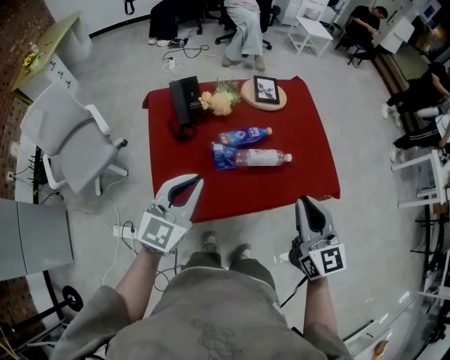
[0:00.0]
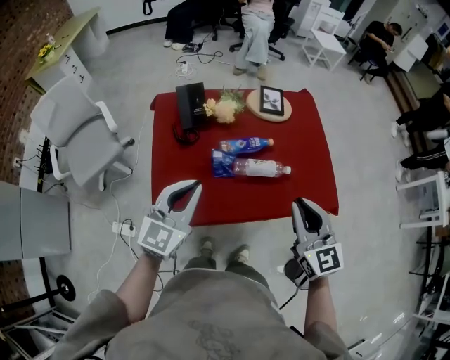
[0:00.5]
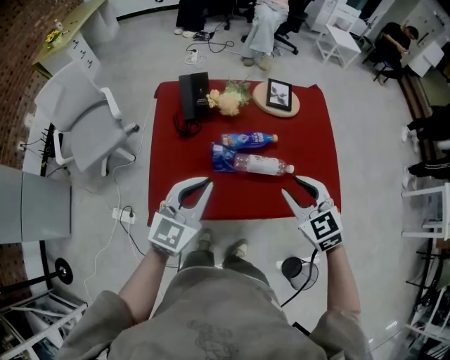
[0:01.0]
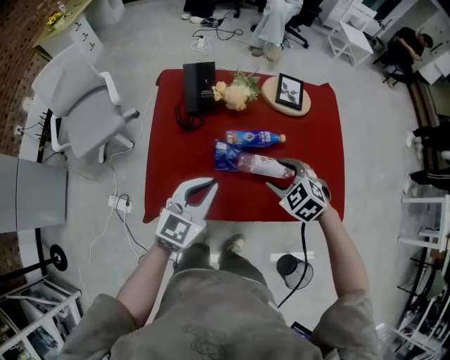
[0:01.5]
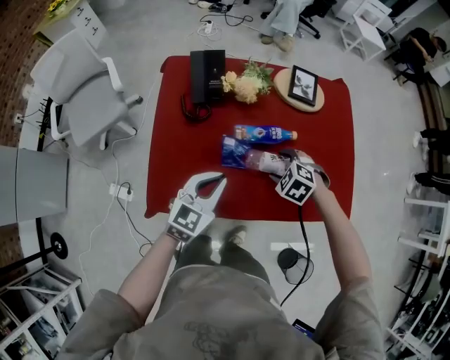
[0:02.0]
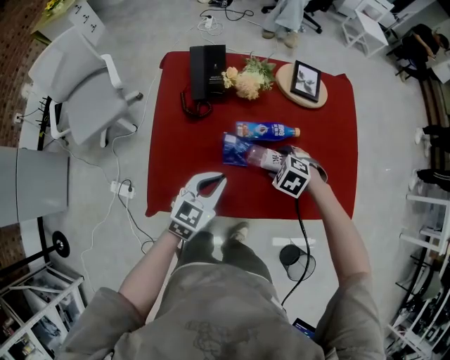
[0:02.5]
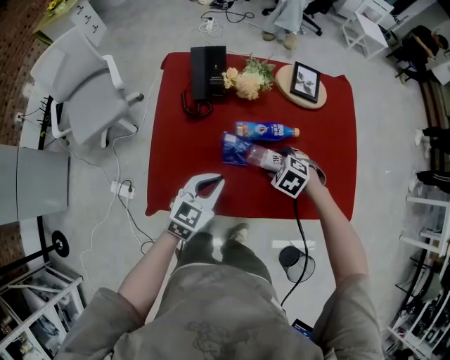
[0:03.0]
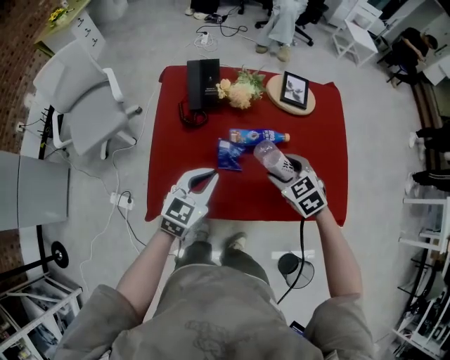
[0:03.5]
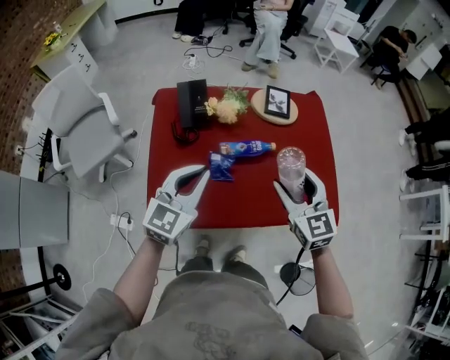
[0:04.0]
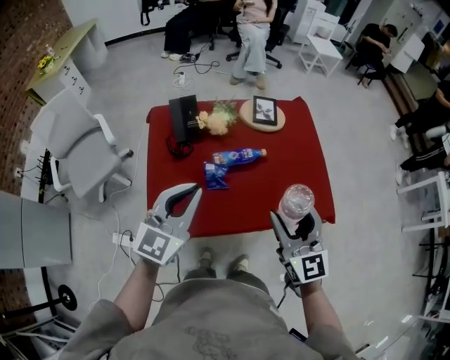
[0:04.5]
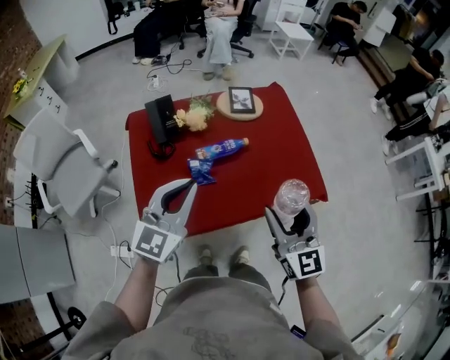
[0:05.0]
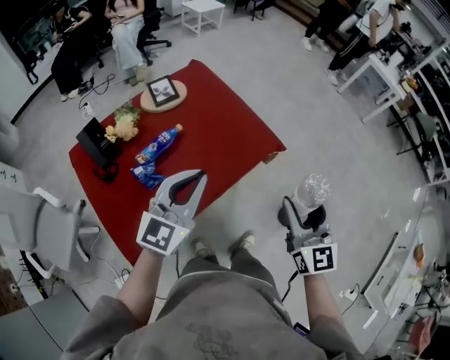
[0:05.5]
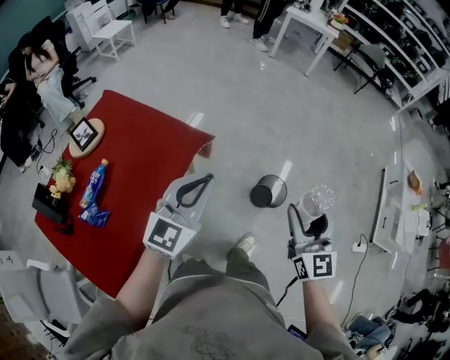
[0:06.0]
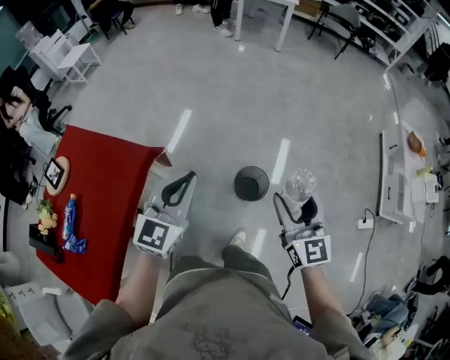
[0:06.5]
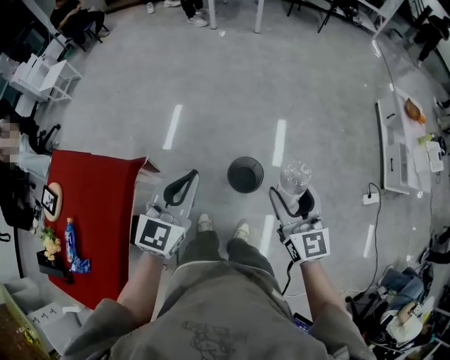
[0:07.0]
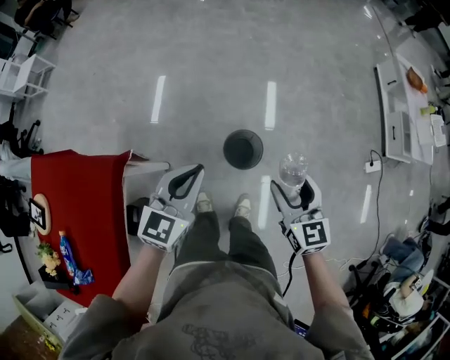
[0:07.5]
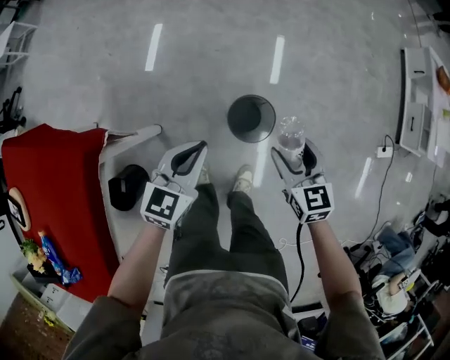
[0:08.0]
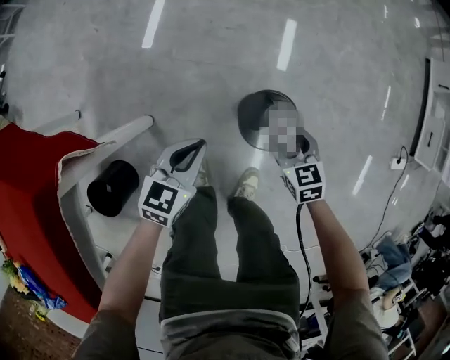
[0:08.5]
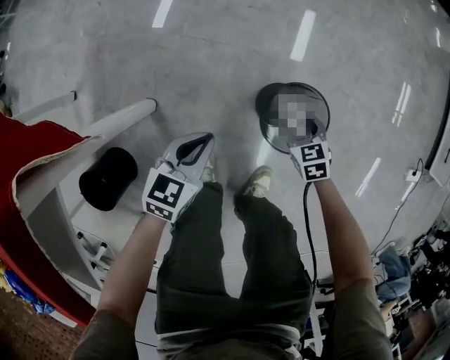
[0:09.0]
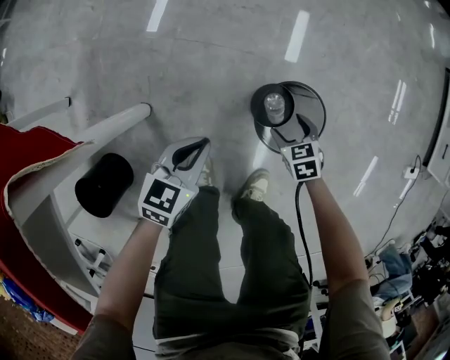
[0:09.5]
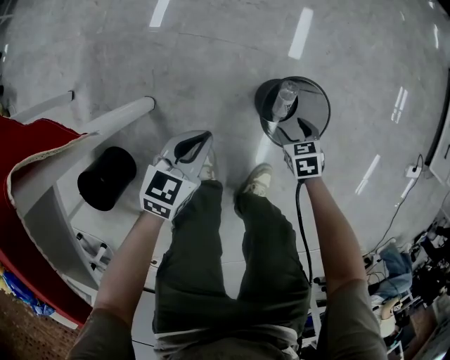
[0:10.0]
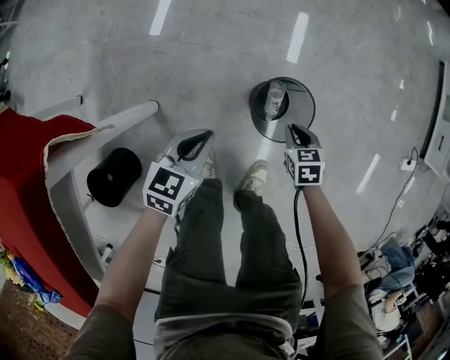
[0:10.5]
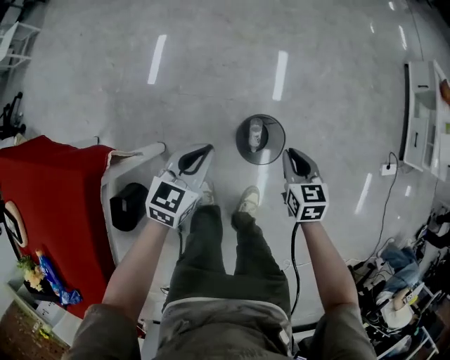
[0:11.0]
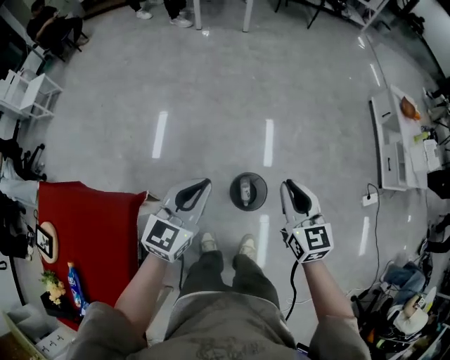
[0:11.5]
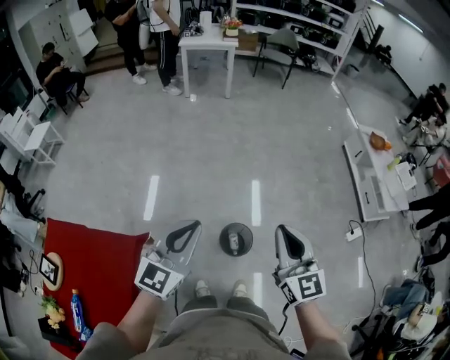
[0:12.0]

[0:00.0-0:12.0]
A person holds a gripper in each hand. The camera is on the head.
0:00.0 to 0:02.0: The right gripper shifts about 35 cm downward and forward, points its fingers some 60 degrees further downward, and opens up. The left gripper goes about 15 cm downward.
0:02.0 to 0:04.0: The right gripper goes roughly 25 cm upward, and tilts its fingers some 50 degrees upward. Meanwhile the left gripper moves upward, about 15 cm.
0:04.0 to 0:06.0: The pair of grippers is taken roughly 50 cm. The left gripper turns by about 60 degrees; the right gripper turns by roughly 80 degrees.
0:06.0 to 0:08.0: The two grippers go about 50 cm downward, forward and to the right. The right gripper tilts its fingers roughly 30 degrees downward; the left gripper swivels roughly 40 degrees.
0:08.0 to 0:10.0: Both grippers travel together downward, roughly 40 cm. The right gripper angles its fingers downward, by some 30 degrees.
0:10.0 to 0:12.0: Both grippers travel together upward, approximately 80 cm. The left gripper tips its fingers upward by approximately 40 degrees. The right gripper points its fingers approximately 70 degrees further upward, and closes its fingers.

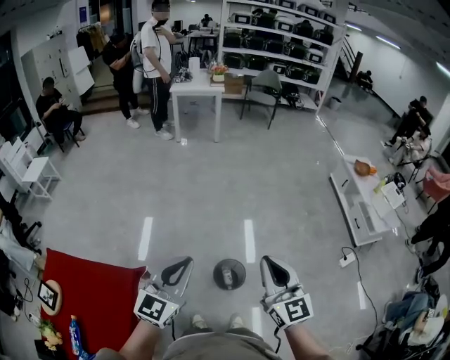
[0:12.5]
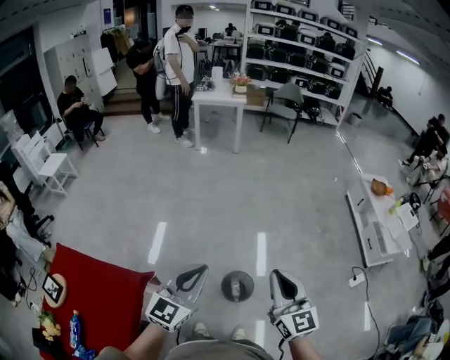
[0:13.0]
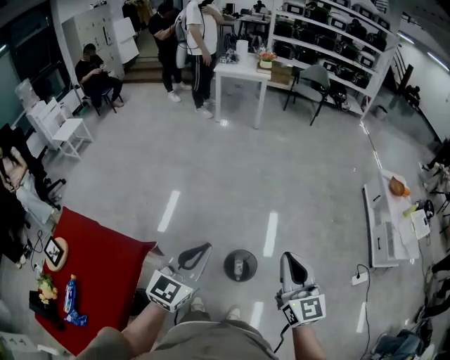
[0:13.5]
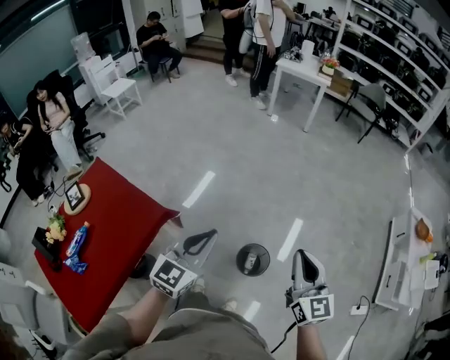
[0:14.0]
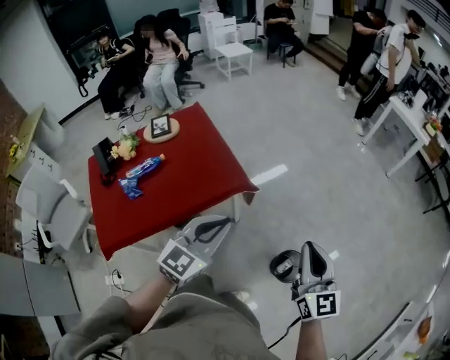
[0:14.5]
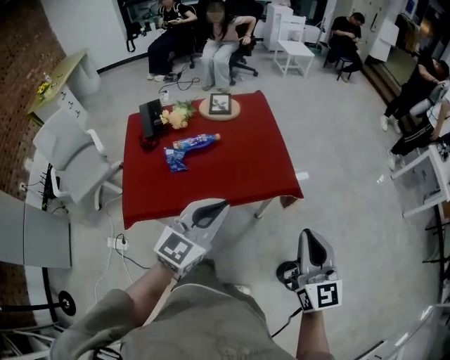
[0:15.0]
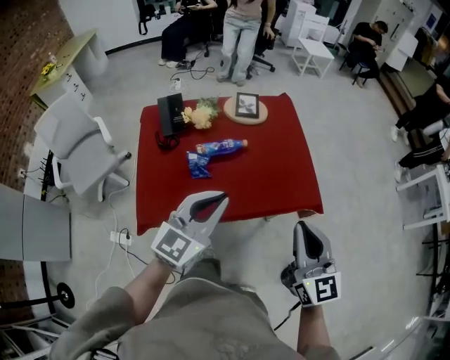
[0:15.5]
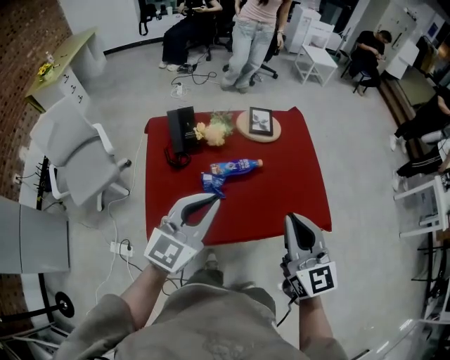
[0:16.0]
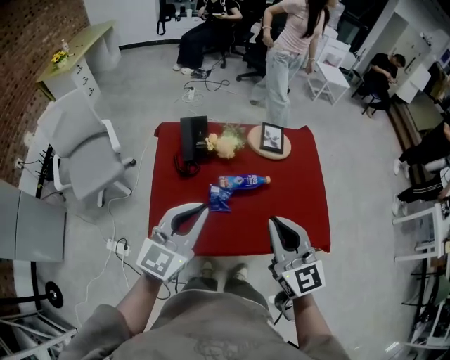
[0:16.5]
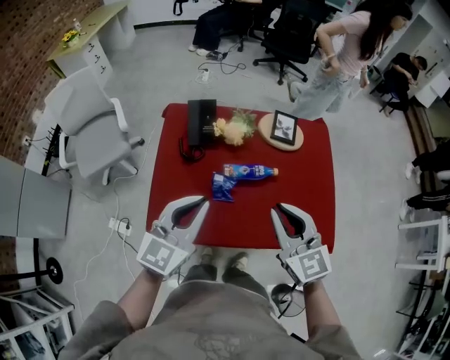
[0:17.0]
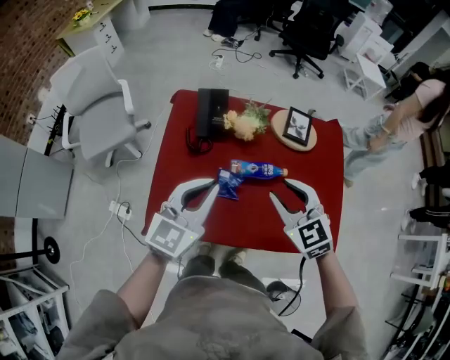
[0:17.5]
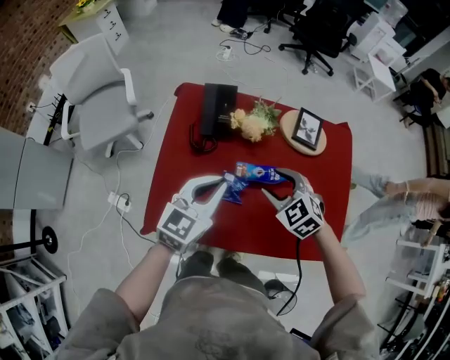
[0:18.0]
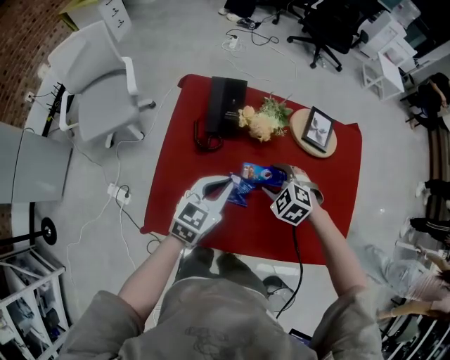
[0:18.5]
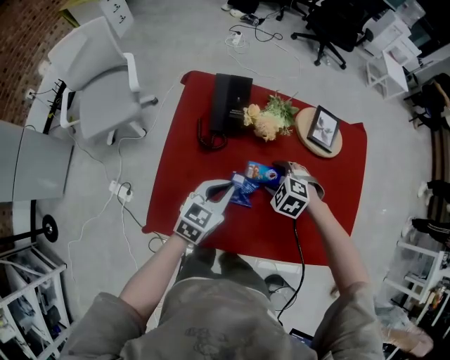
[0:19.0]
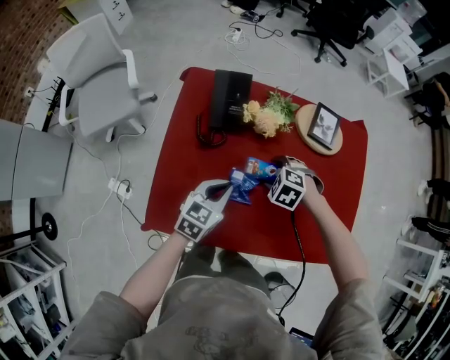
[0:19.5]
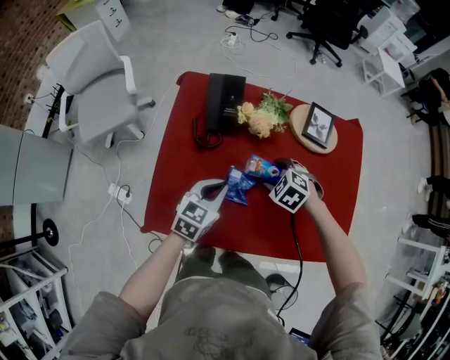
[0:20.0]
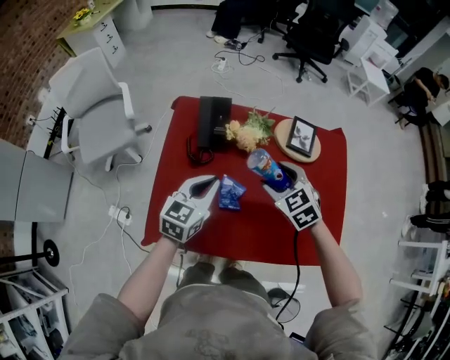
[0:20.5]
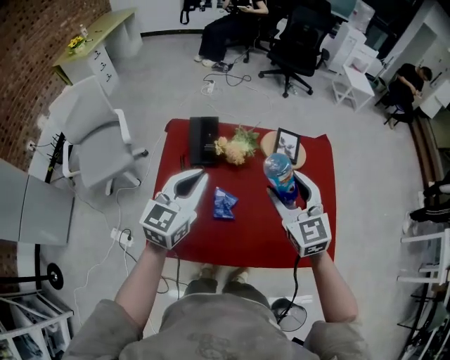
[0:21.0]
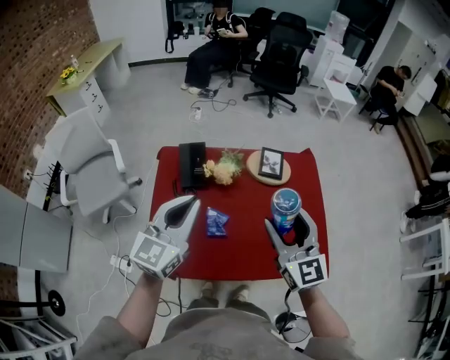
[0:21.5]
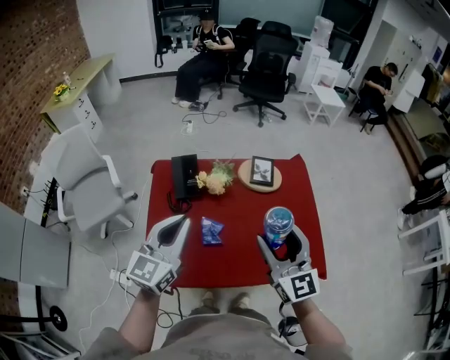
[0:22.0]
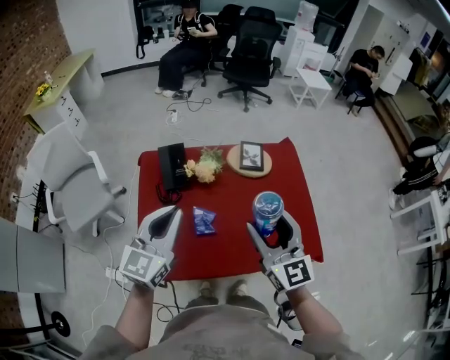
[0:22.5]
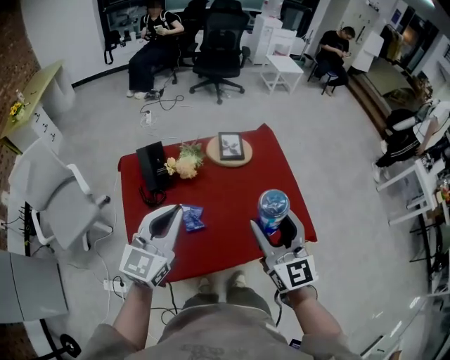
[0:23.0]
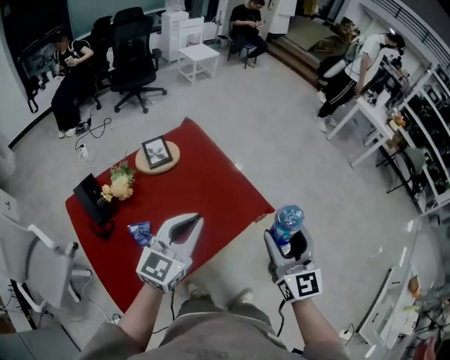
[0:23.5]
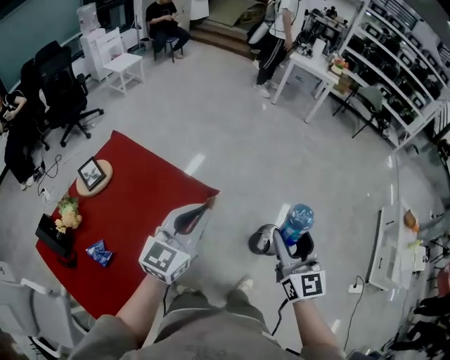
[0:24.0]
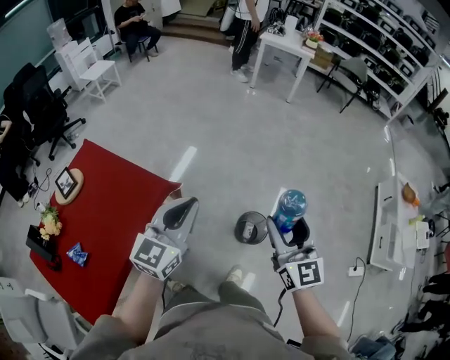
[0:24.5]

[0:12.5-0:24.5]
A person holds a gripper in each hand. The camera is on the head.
0:12.5 to 0:14.5: The left gripper changes place by roughly 15 cm, and changes its angle by approximately 50 degrees; the right gripper moves about 15 cm, and swivels approximately 50 degrees.
0:14.5 to 0:16.5: The two grippers travel together, roughly 60 cm. The left gripper changes its angle by approximately 40 degrees. Meanwhile the right gripper changes its angle by some 40 degrees.
0:16.5 to 0:18.5: Both grippers travel together downward and forward, some 30 cm. The right gripper angles its fingers downward, by approximately 60 degrees, and opens its fingers. The left gripper turns by approximately 30 degrees.
0:18.5 to 0:20.5: The right gripper is displaced upward by some 10 cm, and turns by roughly 30 degrees.
0:20.5 to 0:22.5: The right gripper heads upward and backward, covering approximately 25 cm, and tilts its fingers roughly 40 degrees upward. The left gripper moves upward, approximately 20 cm, and swivels approximately 20 degrees.
0:22.5 to 0:24.5: Both grippers are carried about 60 cm. The left gripper rotates approximately 60 degrees. Meanwhile the right gripper changes its angle by some 70 degrees.

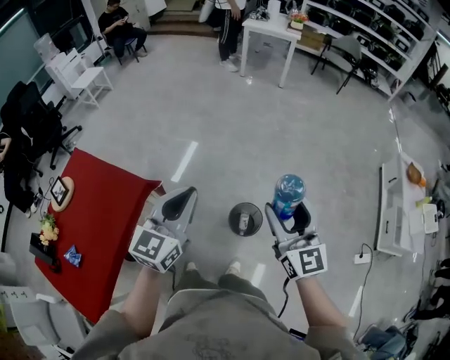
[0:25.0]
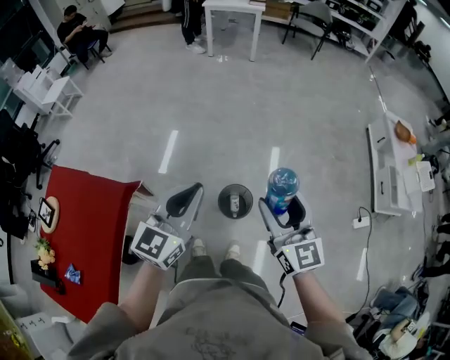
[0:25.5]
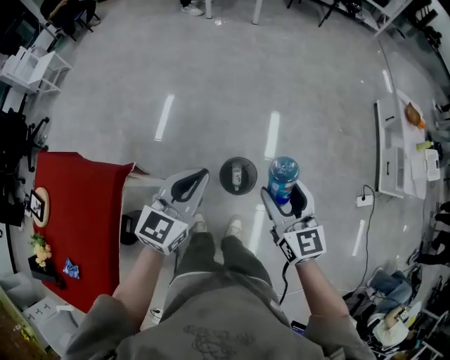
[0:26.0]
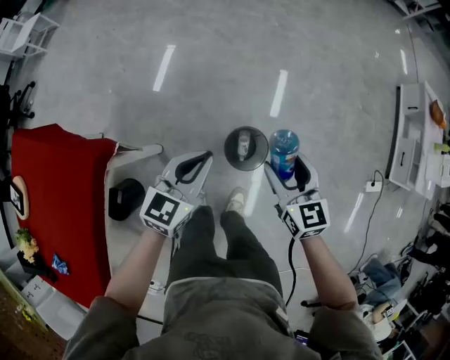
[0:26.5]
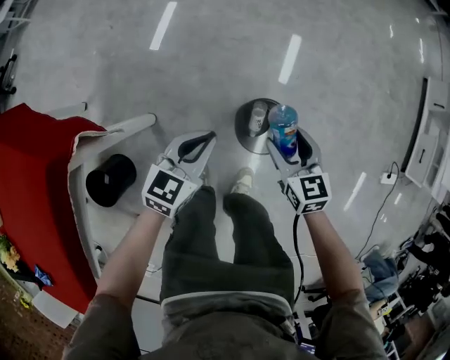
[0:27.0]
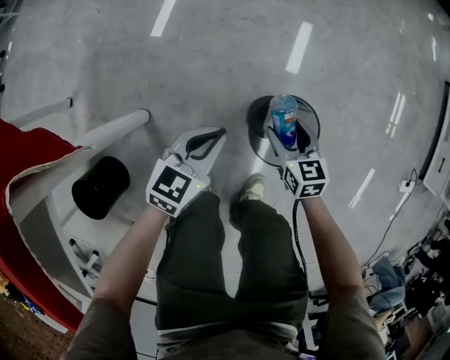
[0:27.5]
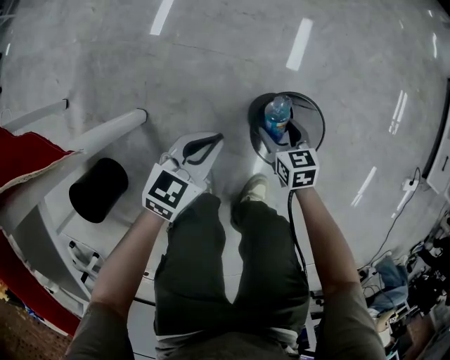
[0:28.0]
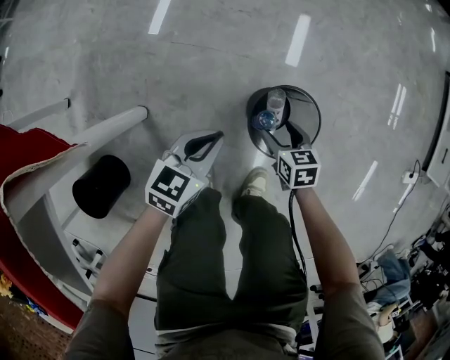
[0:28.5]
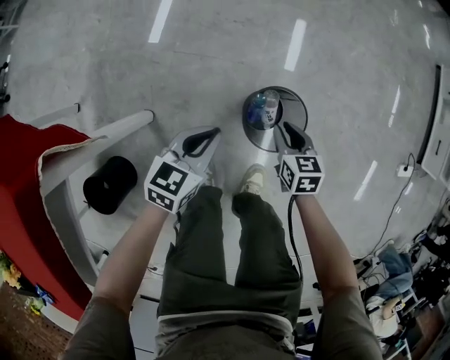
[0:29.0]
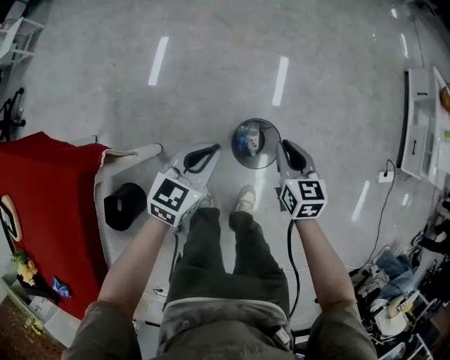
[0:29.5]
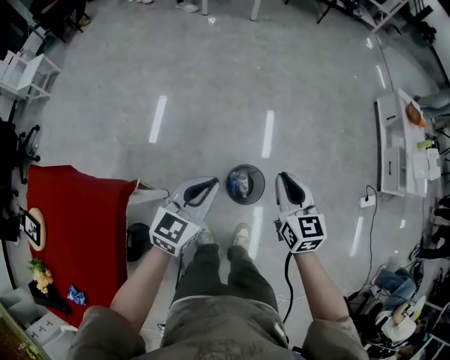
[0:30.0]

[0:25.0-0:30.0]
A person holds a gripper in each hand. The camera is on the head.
0:25.0 to 0:27.5: The grippers both shift downward by roughly 80 cm. The right gripper points its fingers some 40 degrees further downward; the left gripper rotates about 40 degrees.
0:27.5 to 0:30.0: Both grippers travel together upward, approximately 50 cm. The right gripper rotates about 30 degrees, and closes its fingers.
